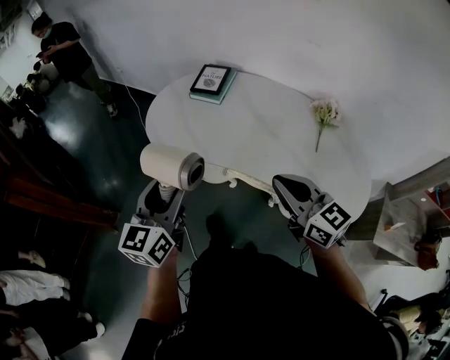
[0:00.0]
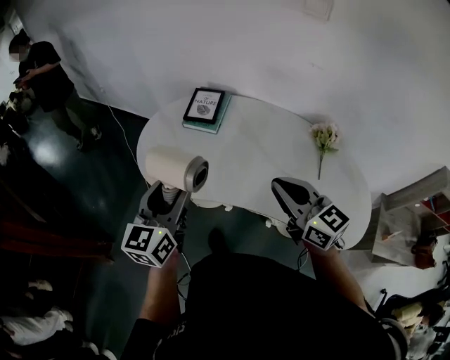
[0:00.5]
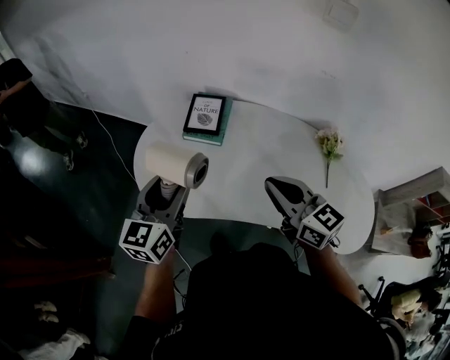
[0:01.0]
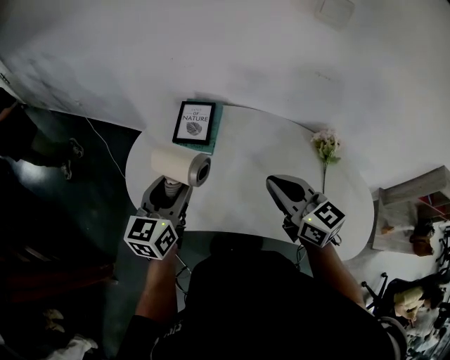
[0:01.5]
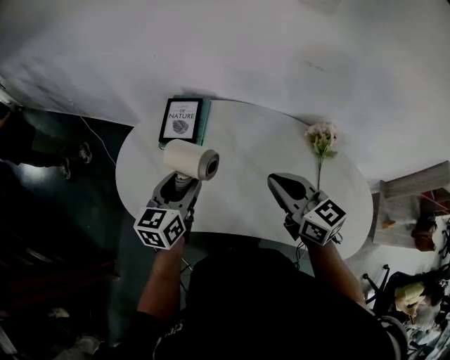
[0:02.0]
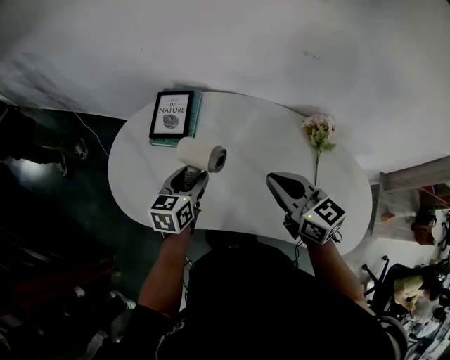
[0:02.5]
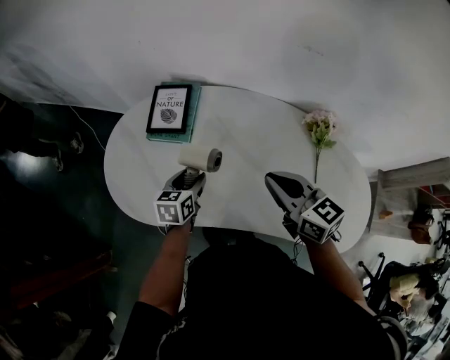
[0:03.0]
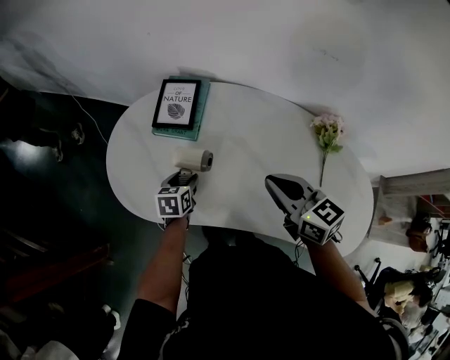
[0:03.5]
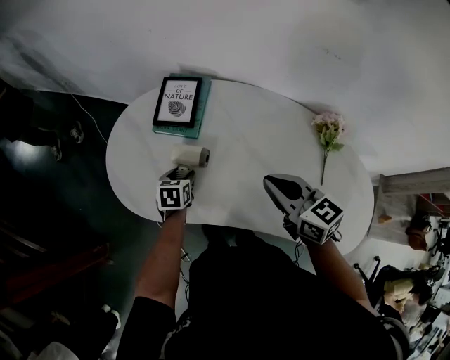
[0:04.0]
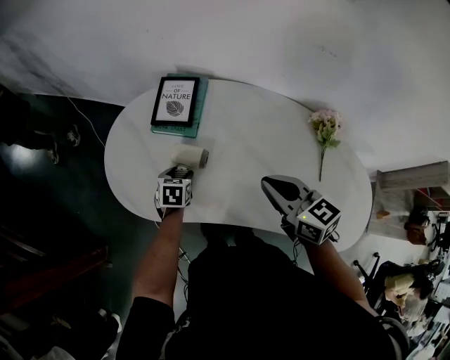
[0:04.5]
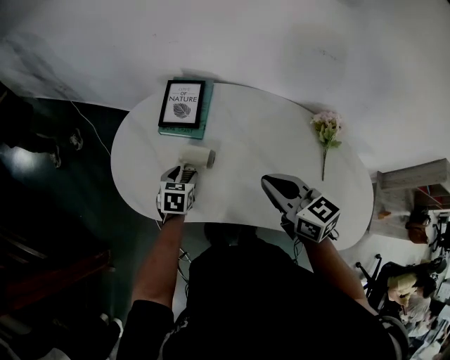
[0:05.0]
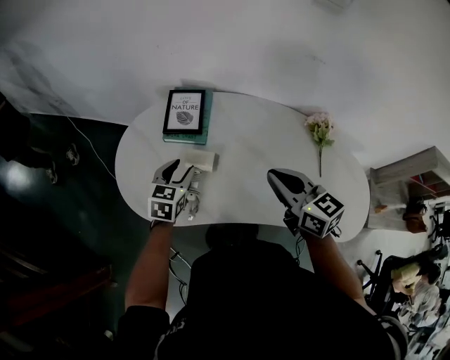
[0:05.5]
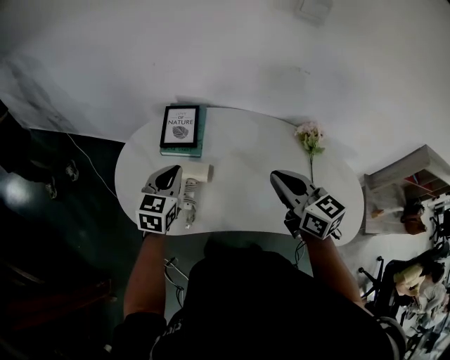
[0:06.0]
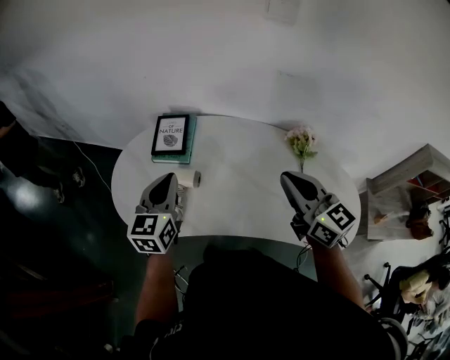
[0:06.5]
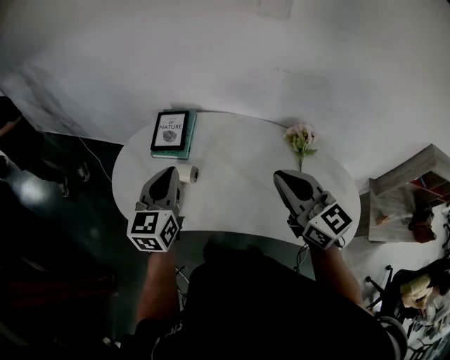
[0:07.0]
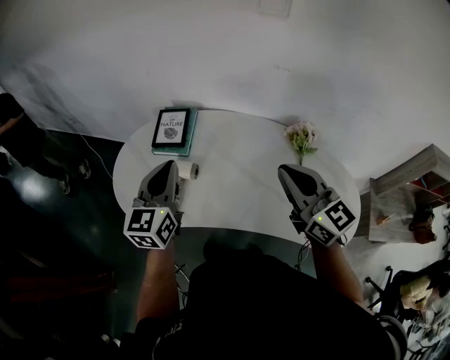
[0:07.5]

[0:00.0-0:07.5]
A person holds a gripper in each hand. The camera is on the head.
0:00.0 to 0:02.0: Both grippers travel together forward, about 30 cm. The left gripper changes its angle by some 20 degrees.
0:02.0 to 0:04.0: The right gripper goes about 5 cm downward. Meanwhile the left gripper is displaced downward by about 25 cm, and angles its fingers downward, by some 30 degrees.
0:04.0 to 0:05.5: The right gripper changes place by approximately 5 cm. The left gripper moves upward, some 15 cm, and swivels about 30 degrees.
0:05.5 to 0:07.5: The right gripper moves to the right, upward and backward, about 15 cm, and rotates some 20 degrees, while the left gripper heads upward, covering about 20 cm, turns by approximately 30 degrees, and closes up.

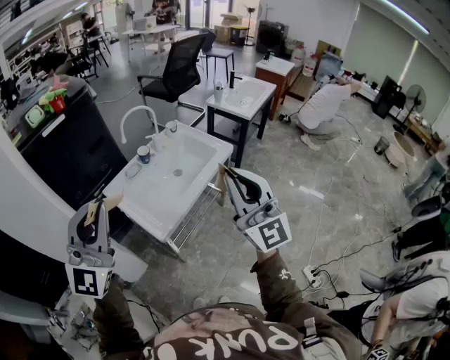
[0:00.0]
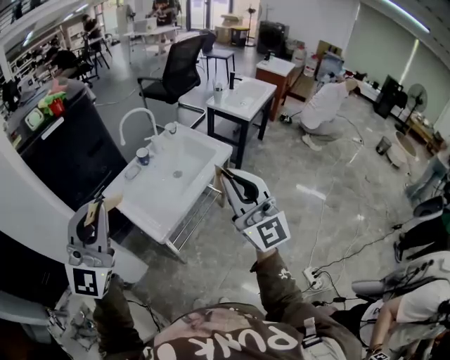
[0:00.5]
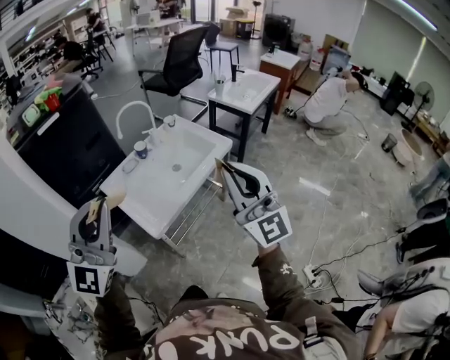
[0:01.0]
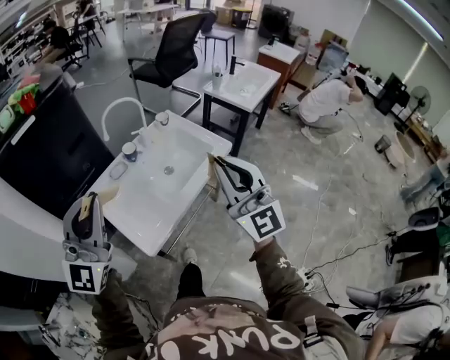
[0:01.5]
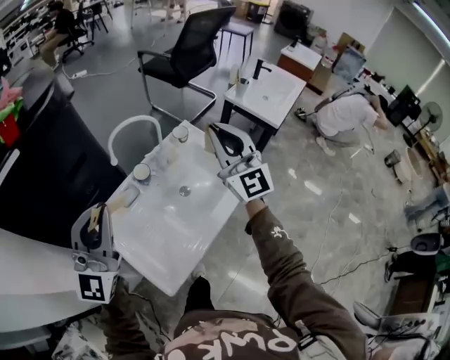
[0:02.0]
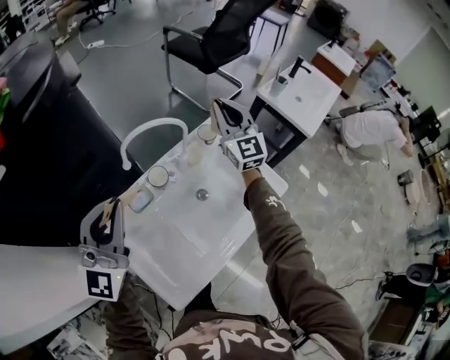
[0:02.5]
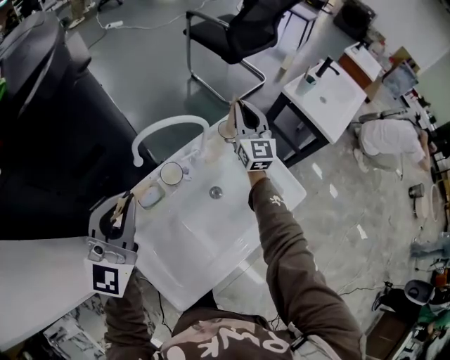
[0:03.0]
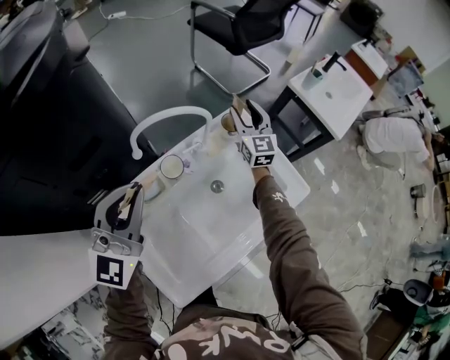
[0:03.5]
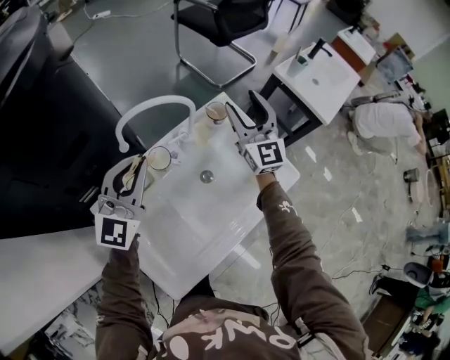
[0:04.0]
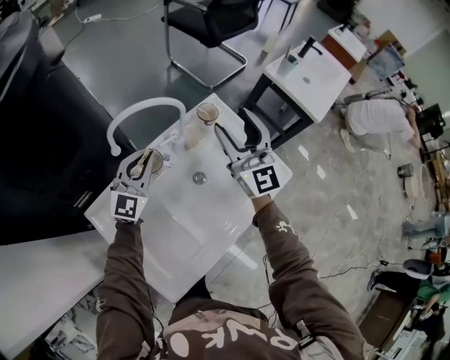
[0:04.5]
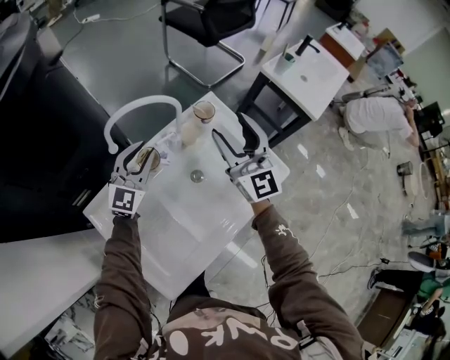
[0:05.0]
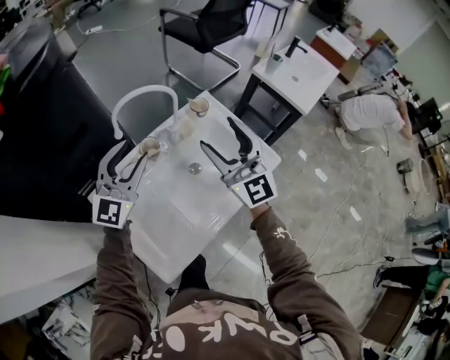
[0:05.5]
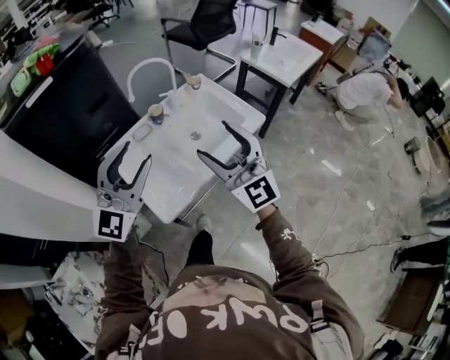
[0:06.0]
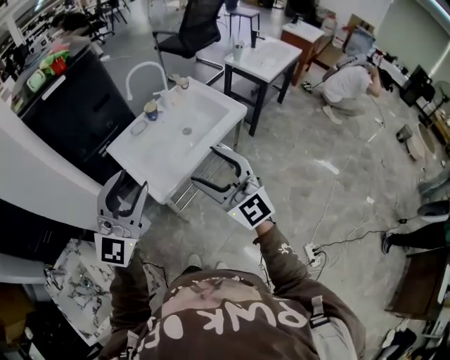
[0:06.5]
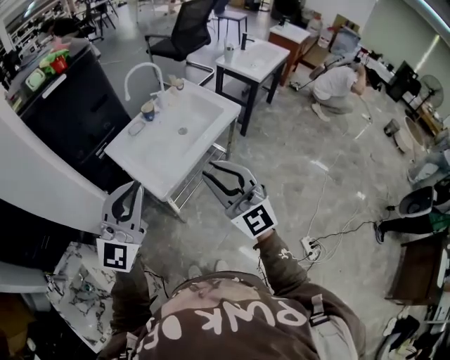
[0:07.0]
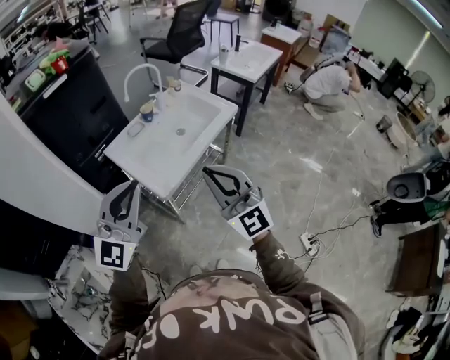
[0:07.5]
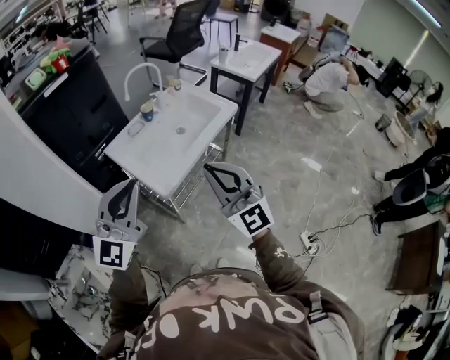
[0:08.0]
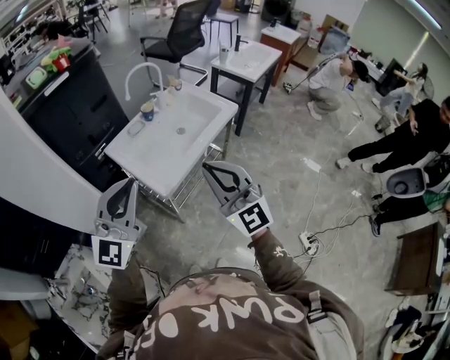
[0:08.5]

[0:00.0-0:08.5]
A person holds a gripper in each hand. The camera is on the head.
0:00.0 to 0:02.0: Both grippers move forward, about 40 cm.
0:02.0 to 0:04.0: The grippers both shift forward and downward by roughly 25 cm. The right gripper opens its fingers.
0:04.0 to 0:06.5: Both grippers are carried backward, approximately 60 cm. The left gripper opens.
0:06.5 to 0:08.5: The left gripper is displaced to the left by approximately 10 cm, and closes, while the right gripper goes some 10 cm backward and to the left, and closes up.

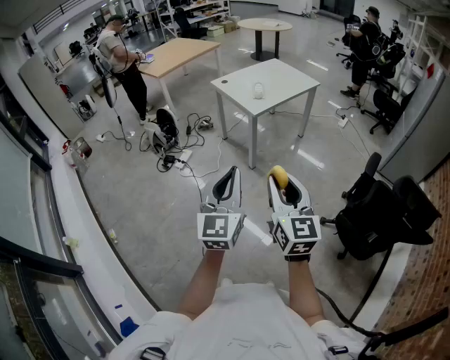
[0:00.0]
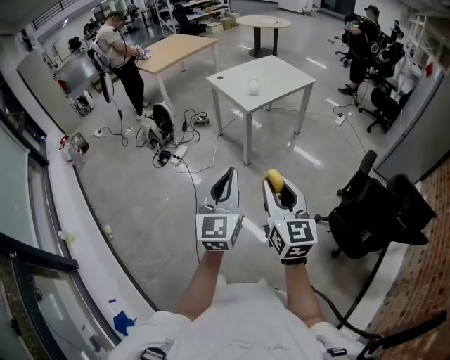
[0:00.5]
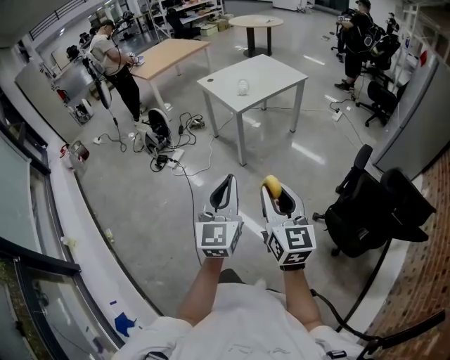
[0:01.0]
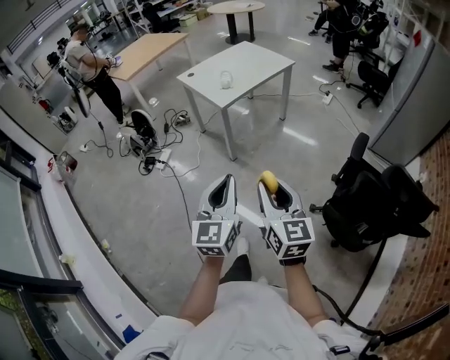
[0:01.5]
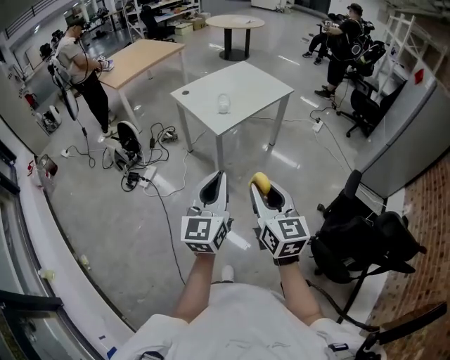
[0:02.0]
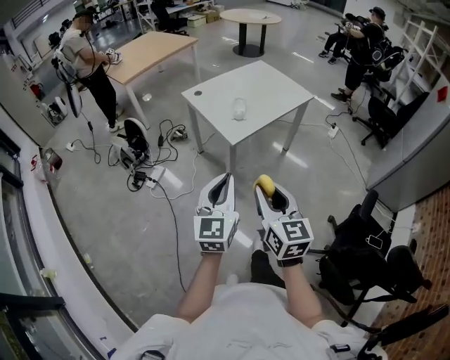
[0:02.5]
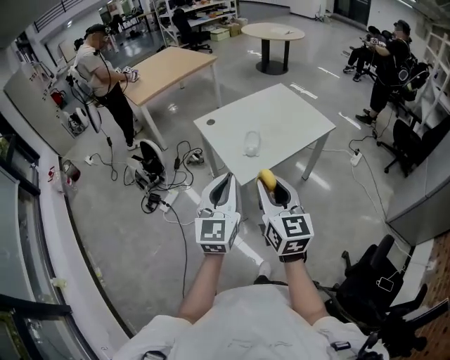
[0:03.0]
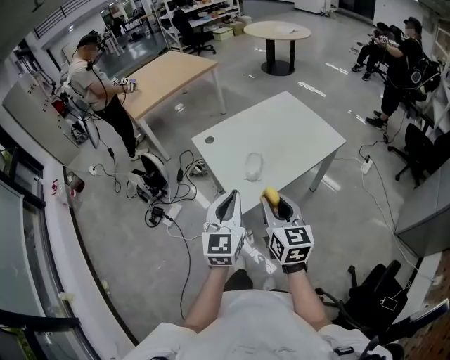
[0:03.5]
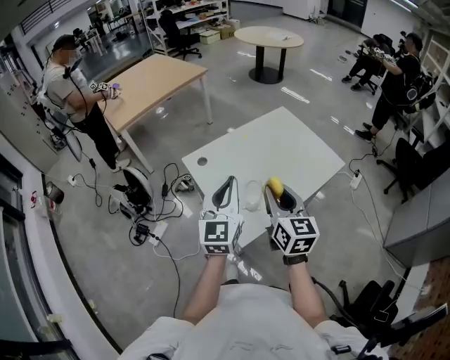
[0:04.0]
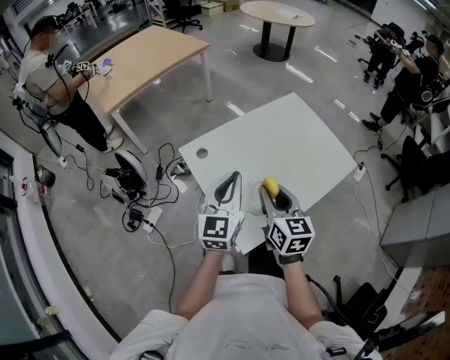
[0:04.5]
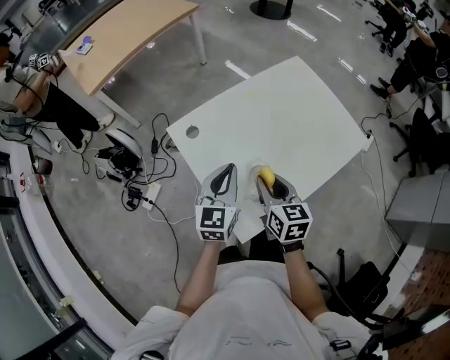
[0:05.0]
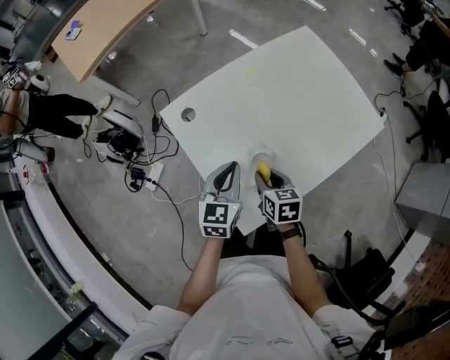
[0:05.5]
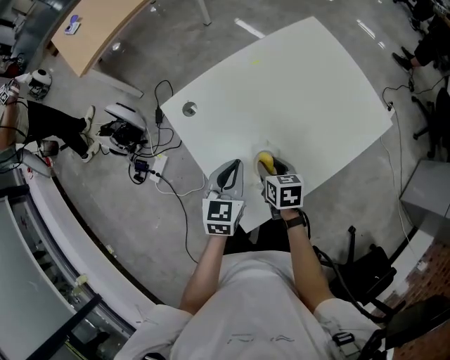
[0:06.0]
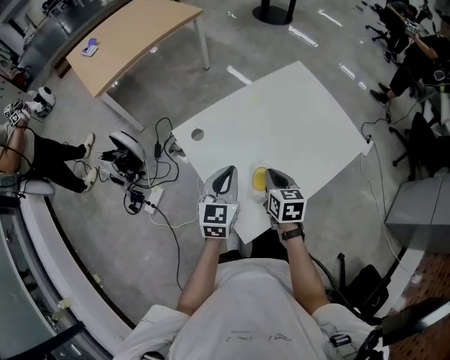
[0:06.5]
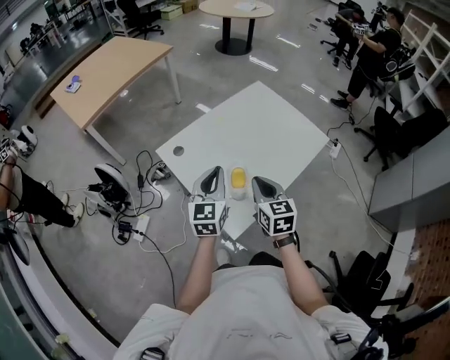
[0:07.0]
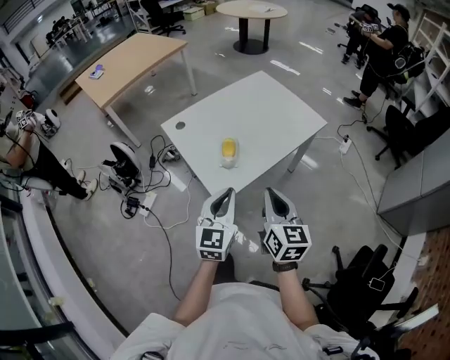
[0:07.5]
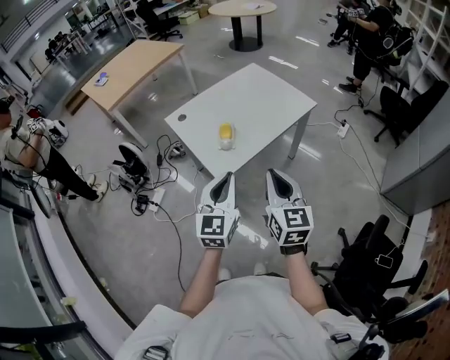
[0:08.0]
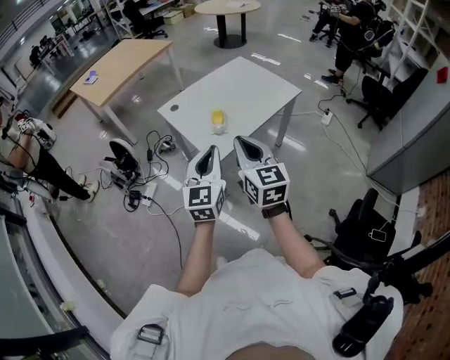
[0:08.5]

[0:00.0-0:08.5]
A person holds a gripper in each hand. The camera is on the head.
0:00.0 to 0:02.0: The left gripper goes about 20 cm forward and to the right. The right gripper goes approximately 20 cm forward.
0:02.0 to 0:04.0: The pair of grippers is taken forward, roughly 60 cm.
0:04.0 to 0:06.5: The two grippers go approximately 25 cm downward and forward. The left gripper rotates approximately 20 degrees. Meanwhile the right gripper turns by approximately 30 degrees, and closes its fingers.
0:06.5 to 0:08.5: Both grippers move backward and upward, some 40 cm. The right gripper tilts its fingers approximately 30 degrees upward.

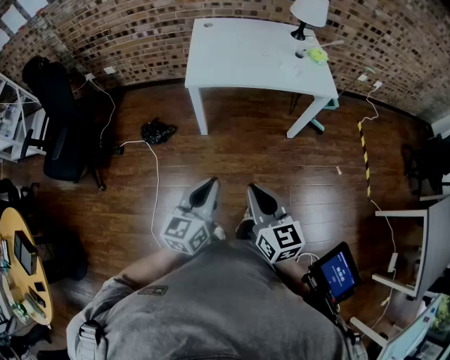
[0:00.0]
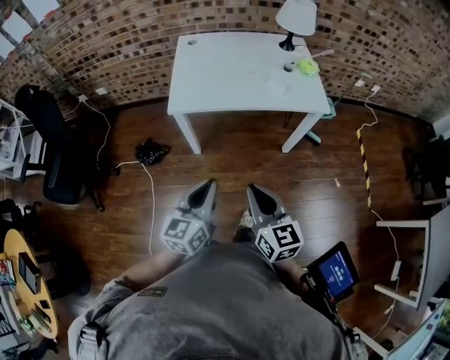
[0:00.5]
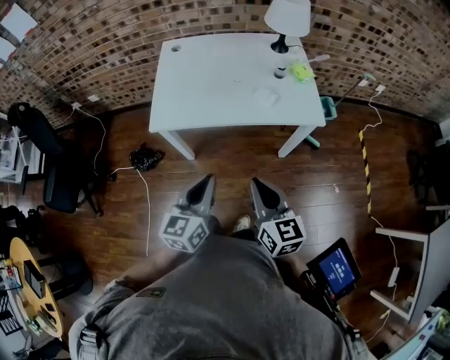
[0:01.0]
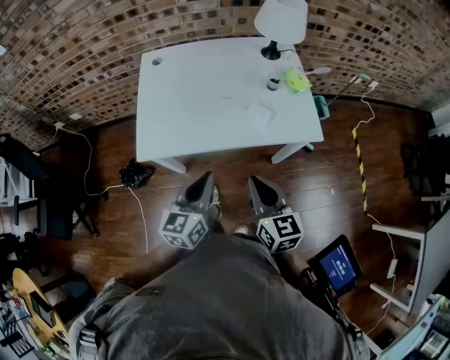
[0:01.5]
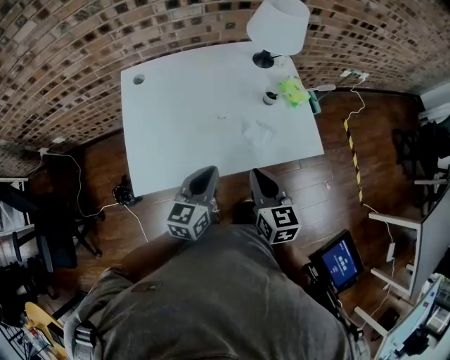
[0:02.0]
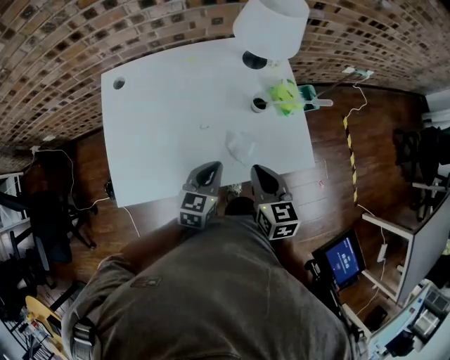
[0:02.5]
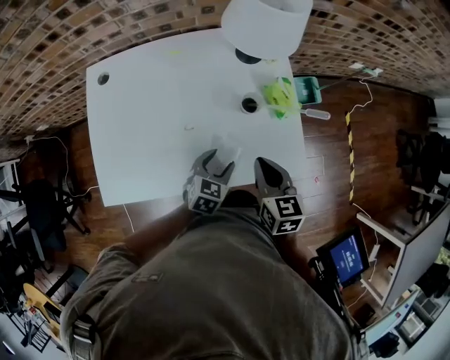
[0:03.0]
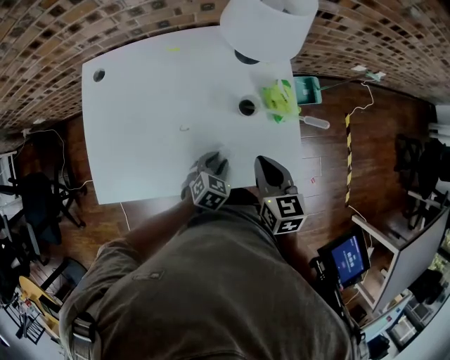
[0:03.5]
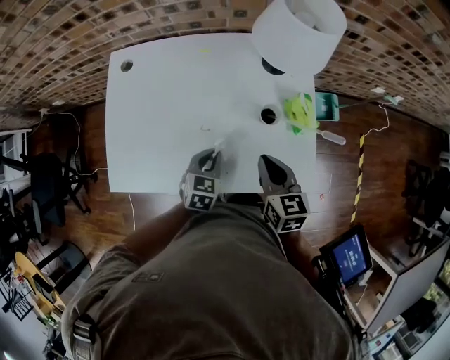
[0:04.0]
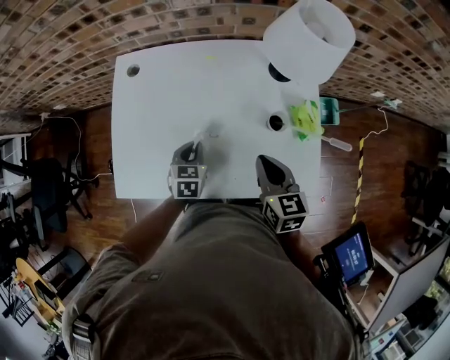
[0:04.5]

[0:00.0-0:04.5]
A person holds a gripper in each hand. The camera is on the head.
0:00.0 to 0:02.0: The pair of grippers is taken forward, some 50 cm.
0:02.0 to 0:04.5: The left gripper heads forward and downward, covering about 20 cm, turns by some 40 degrees, and opens, then closes once more; the right gripper travels forward by about 15 cm.
